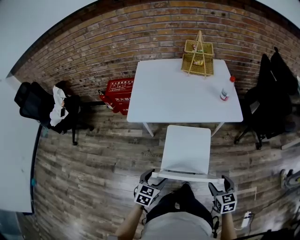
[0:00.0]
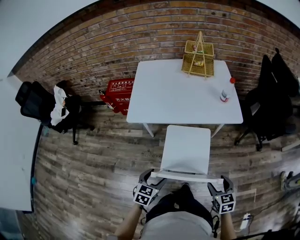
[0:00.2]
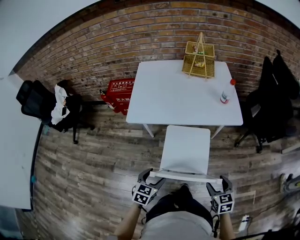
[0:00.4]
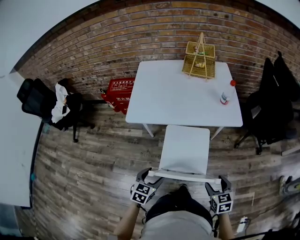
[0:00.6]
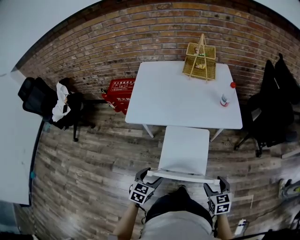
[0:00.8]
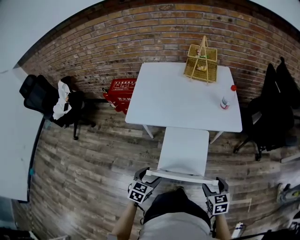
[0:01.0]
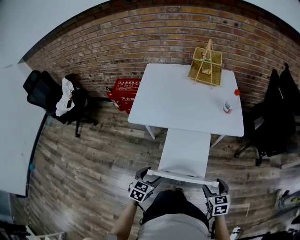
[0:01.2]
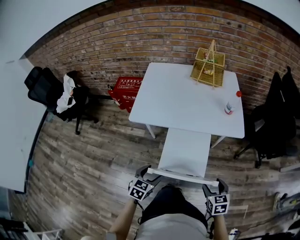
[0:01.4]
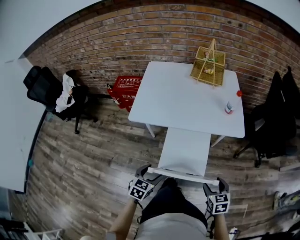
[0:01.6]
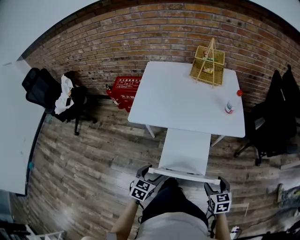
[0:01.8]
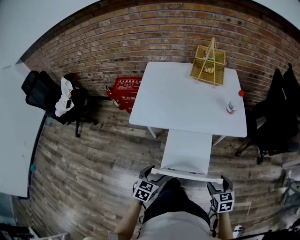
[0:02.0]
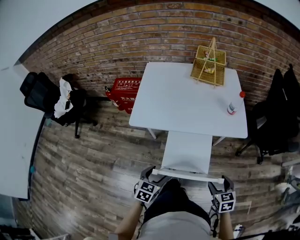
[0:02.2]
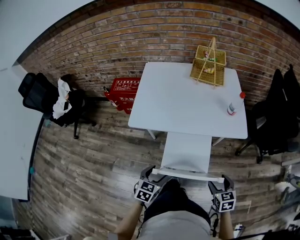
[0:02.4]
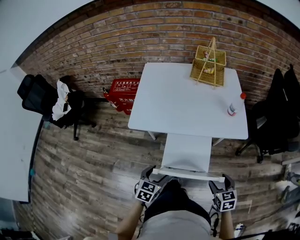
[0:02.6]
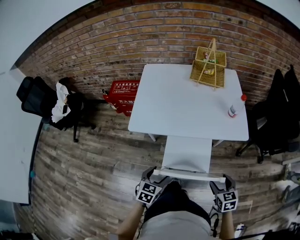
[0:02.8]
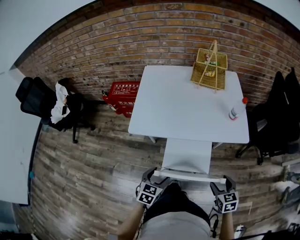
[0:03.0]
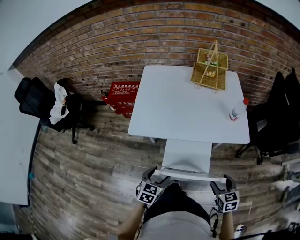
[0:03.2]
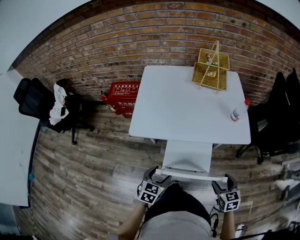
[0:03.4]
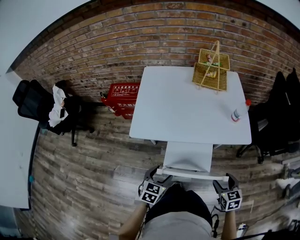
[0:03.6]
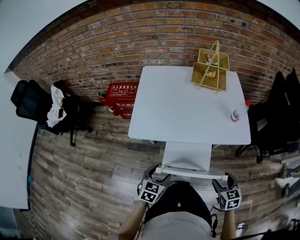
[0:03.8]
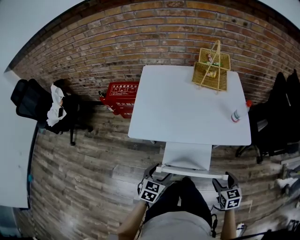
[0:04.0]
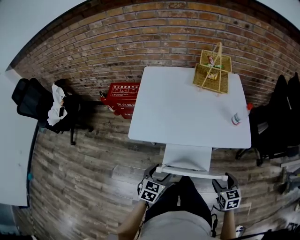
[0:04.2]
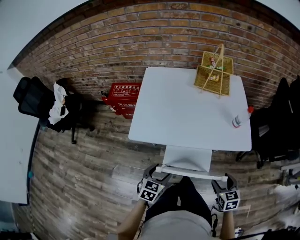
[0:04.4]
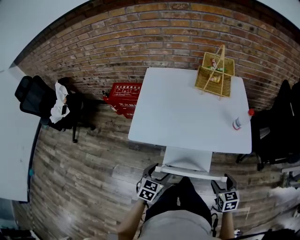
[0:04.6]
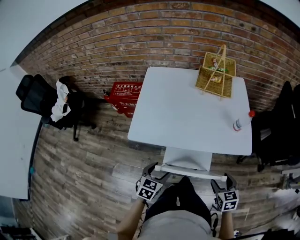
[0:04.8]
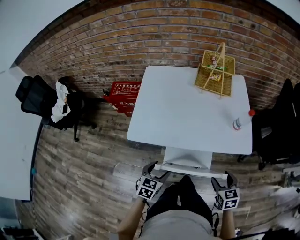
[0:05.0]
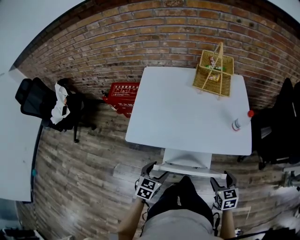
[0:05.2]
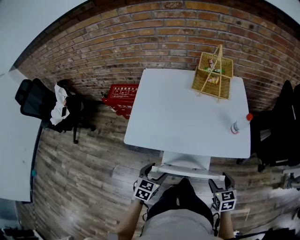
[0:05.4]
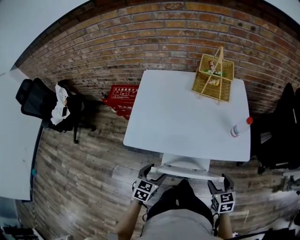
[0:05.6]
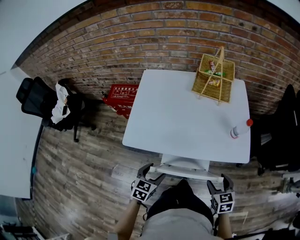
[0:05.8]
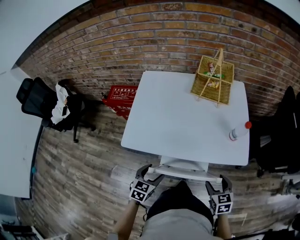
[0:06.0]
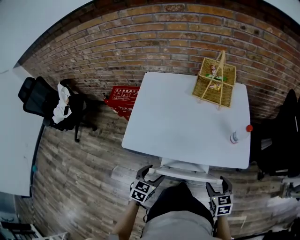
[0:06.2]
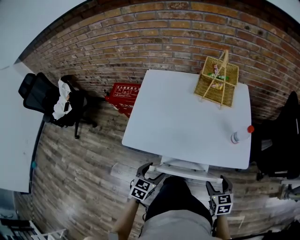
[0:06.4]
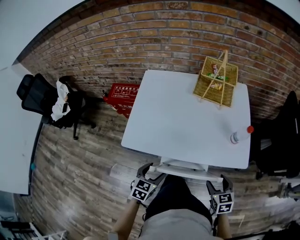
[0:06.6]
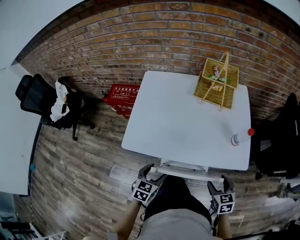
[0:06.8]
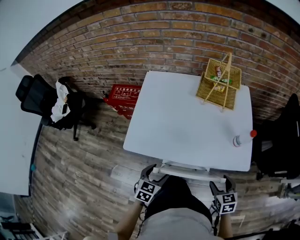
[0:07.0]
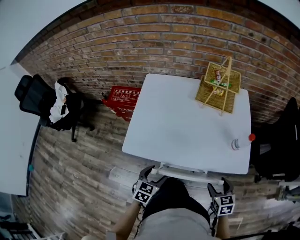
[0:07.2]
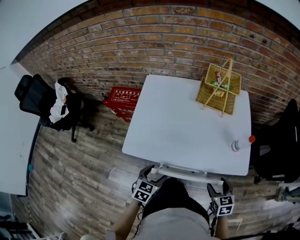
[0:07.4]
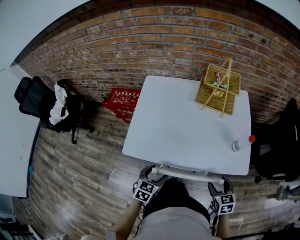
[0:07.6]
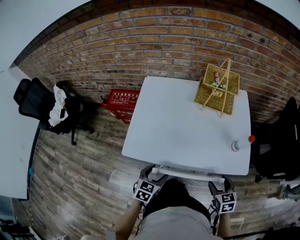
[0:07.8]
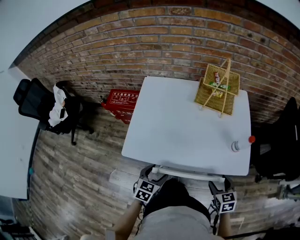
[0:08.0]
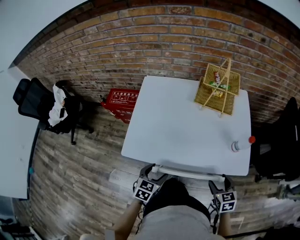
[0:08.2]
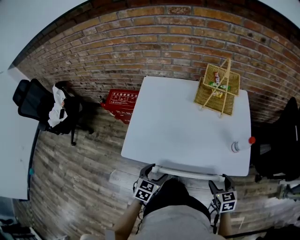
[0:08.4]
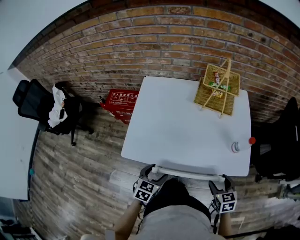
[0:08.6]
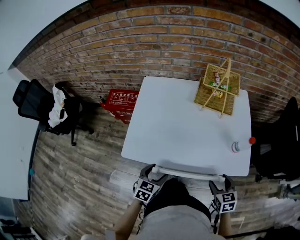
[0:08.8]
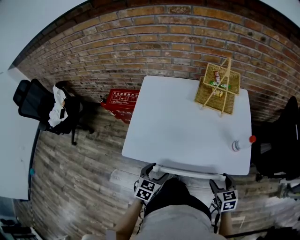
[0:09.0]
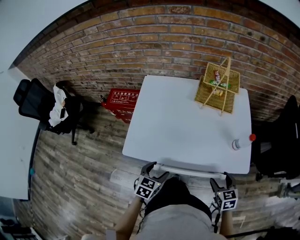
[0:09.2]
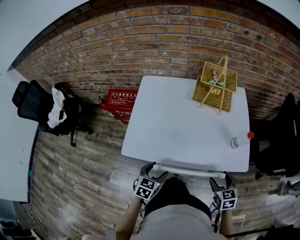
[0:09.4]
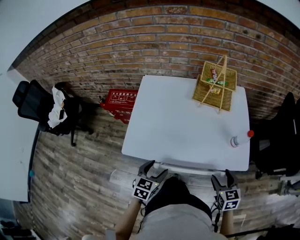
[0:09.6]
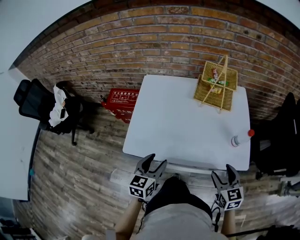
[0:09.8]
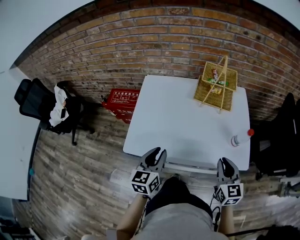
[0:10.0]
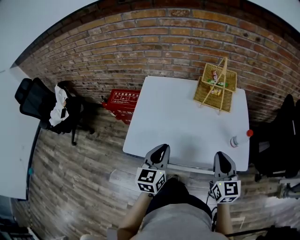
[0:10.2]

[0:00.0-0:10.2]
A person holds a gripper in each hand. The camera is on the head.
0:00.0 to 0:01.4: The right gripper shifts about 5 cm forward.
0:01.4 to 0:03.0: Both grippers move forward, some 5 cm.
0:03.0 to 0:04.4: The grippers both shift forward by some 5 cm.
0:04.4 to 0:05.8: The two grippers go roughly 5 cm forward.
0:05.8 to 0:07.2: The grippers make only small movements.
0:07.2 to 0:08.8: There are only small adjustments of the grippers.
0:08.8 to 0:10.2: The two grippers go roughly 15 cm upward and forward. The right gripper swivels roughly 30 degrees, and closes up; the left gripper turns by some 30 degrees, and closes.

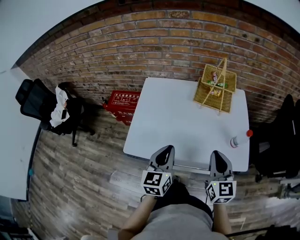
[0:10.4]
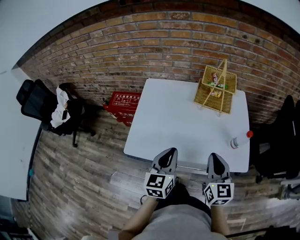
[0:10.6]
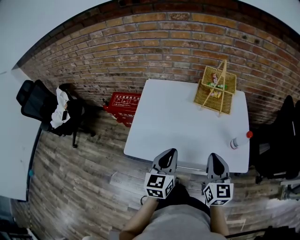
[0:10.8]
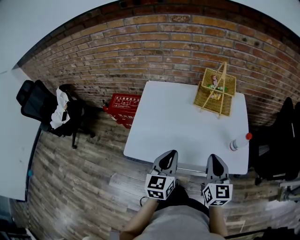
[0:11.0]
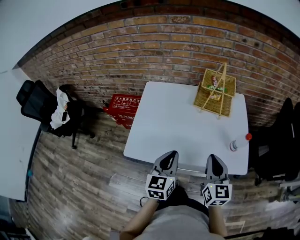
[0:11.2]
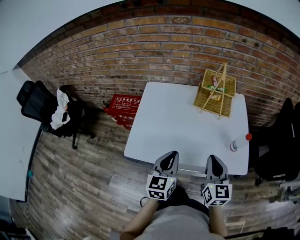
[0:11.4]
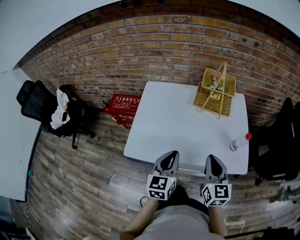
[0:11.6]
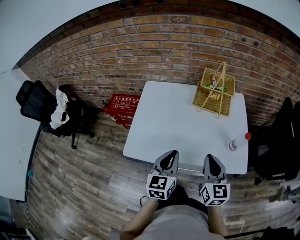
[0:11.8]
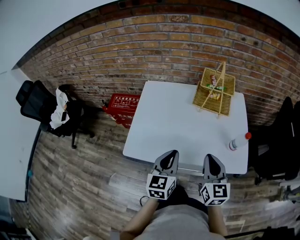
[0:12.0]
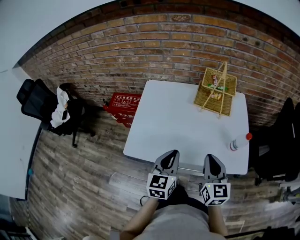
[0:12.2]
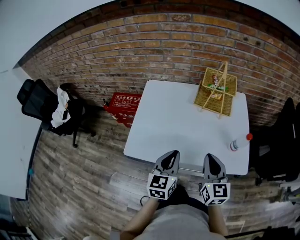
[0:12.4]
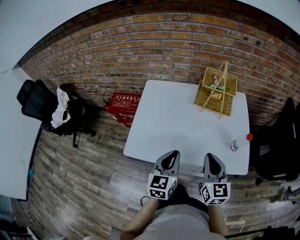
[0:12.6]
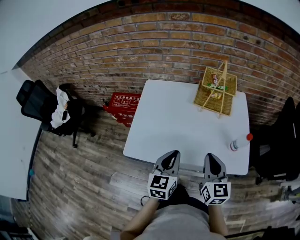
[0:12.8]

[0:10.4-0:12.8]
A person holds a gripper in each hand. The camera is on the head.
0:10.4 to 0:11.6: There are only small adjustments of the grippers.
0:11.6 to 0:12.8: Neither gripper changes place.

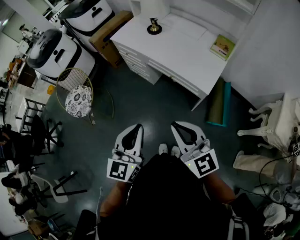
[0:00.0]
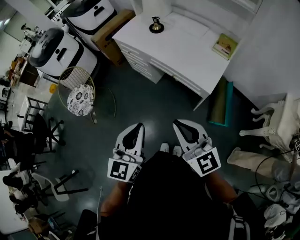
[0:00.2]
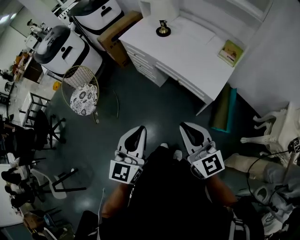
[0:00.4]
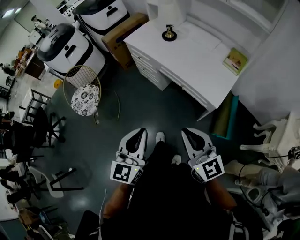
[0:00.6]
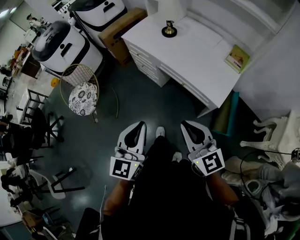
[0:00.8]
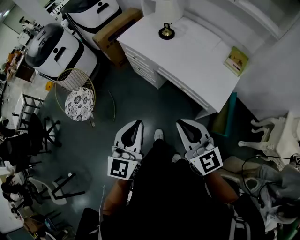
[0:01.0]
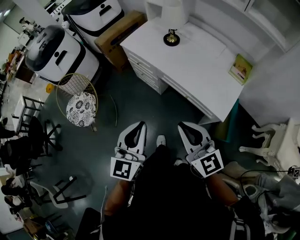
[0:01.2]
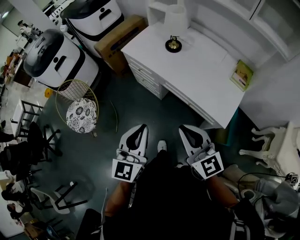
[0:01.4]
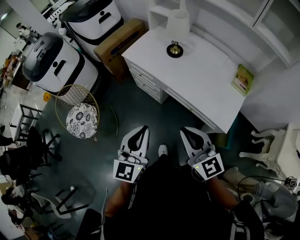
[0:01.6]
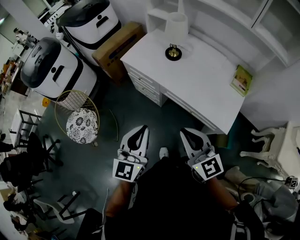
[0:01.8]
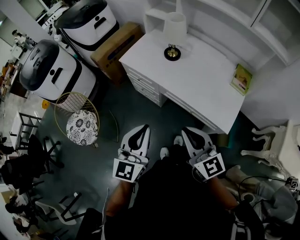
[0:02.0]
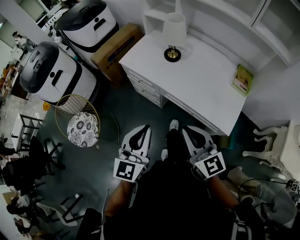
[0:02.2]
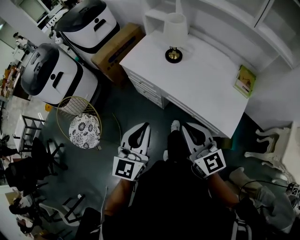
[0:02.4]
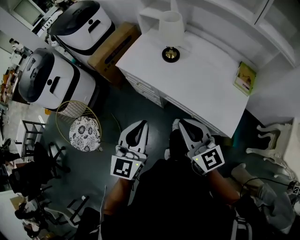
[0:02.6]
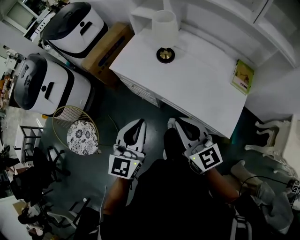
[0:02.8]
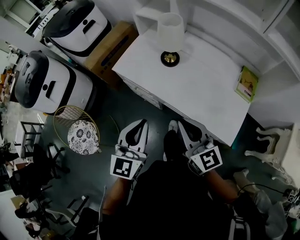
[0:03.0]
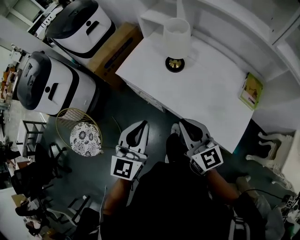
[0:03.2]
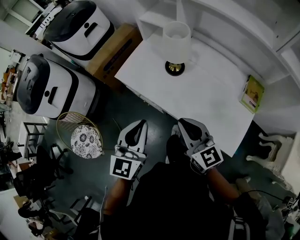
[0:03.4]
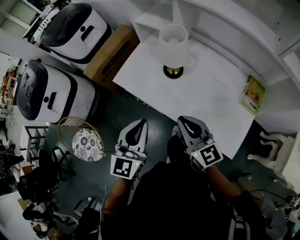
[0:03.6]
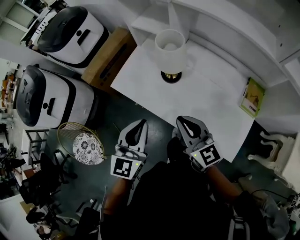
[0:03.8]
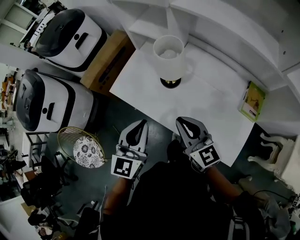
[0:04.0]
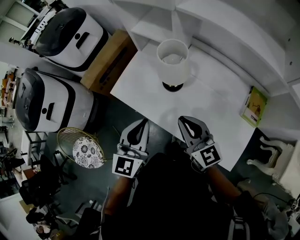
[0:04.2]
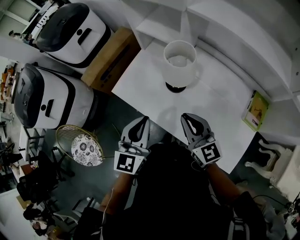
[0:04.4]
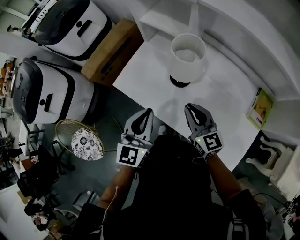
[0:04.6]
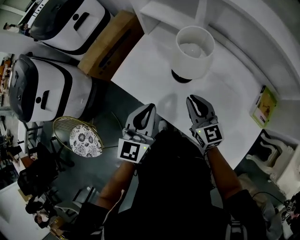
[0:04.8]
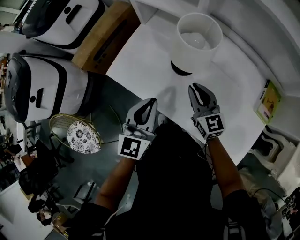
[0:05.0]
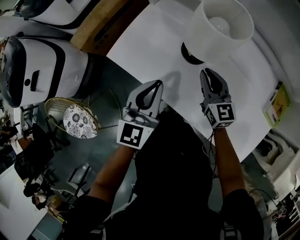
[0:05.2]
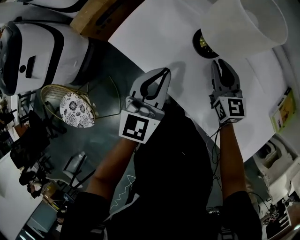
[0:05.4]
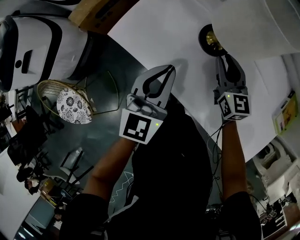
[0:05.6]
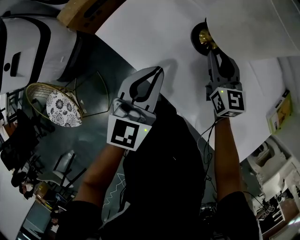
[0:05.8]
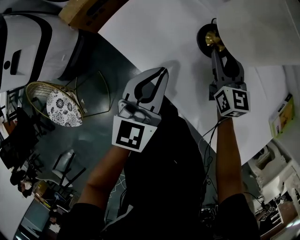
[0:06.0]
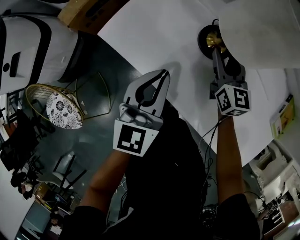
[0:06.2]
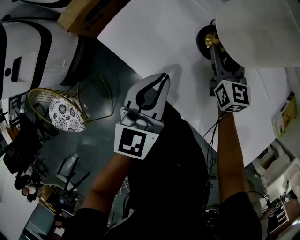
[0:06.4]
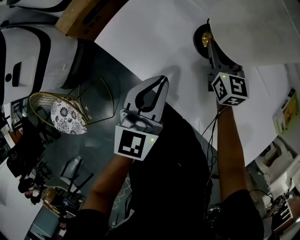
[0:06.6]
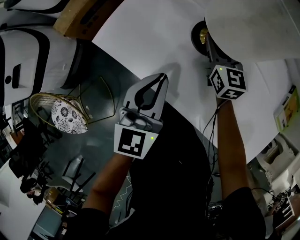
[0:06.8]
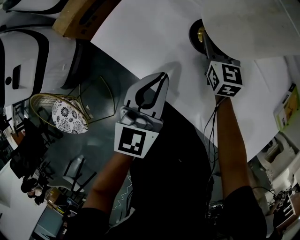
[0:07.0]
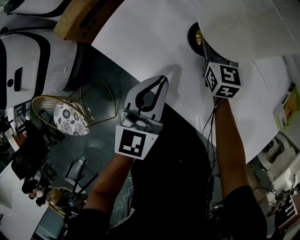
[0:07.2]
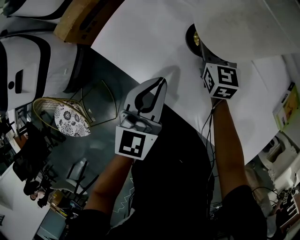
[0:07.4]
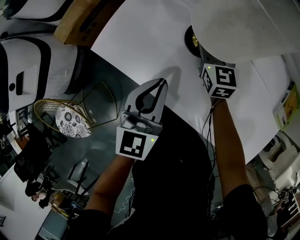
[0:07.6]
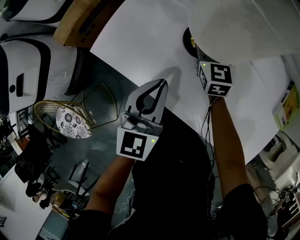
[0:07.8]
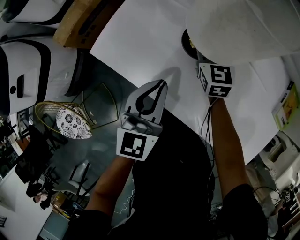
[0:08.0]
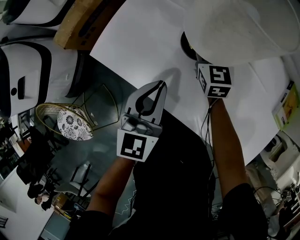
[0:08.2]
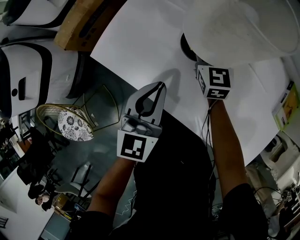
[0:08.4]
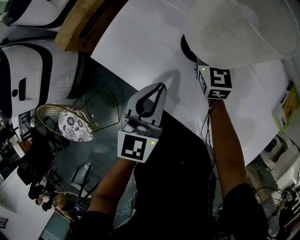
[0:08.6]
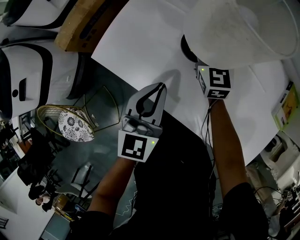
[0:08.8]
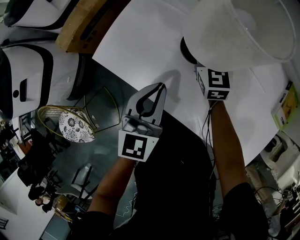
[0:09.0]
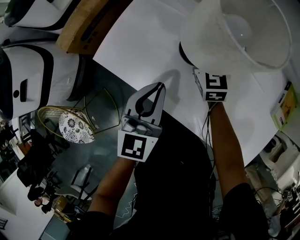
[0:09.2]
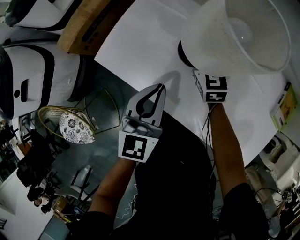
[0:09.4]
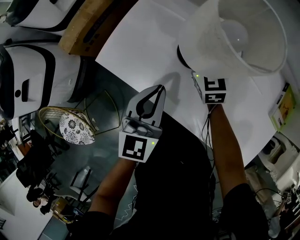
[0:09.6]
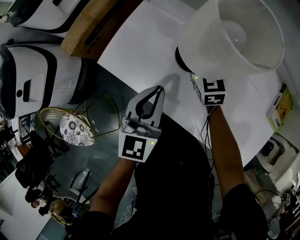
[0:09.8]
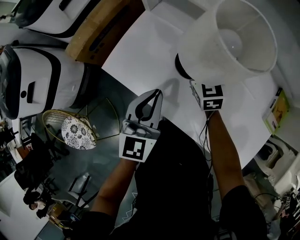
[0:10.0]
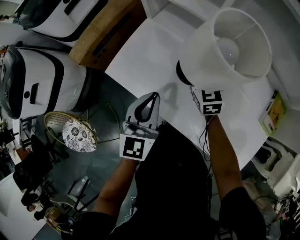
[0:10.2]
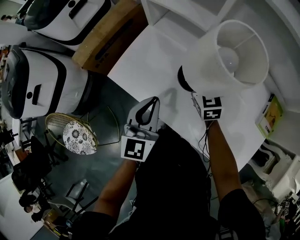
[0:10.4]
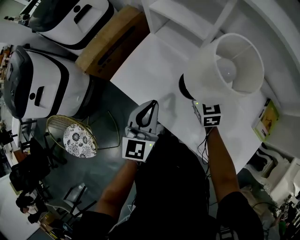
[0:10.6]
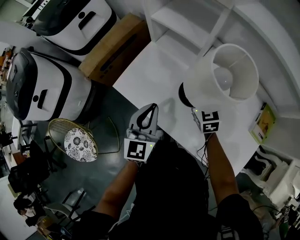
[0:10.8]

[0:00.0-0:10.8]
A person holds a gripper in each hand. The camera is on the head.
0:00.0 to 0:01.6: Both grippers travel together forward, roughly 25 cm.
0:01.6 to 0:03.0: The two grippers go approximately 15 cm forward.
0:03.0 to 0:04.6: The grippers both shift forward by some 25 cm.
0:04.6 to 0:06.2: The left gripper moves downward, roughly 15 cm; the right gripper heads downward and forward, covering about 25 cm, and opens.
0:06.2 to 0:07.8: The right gripper goes about 5 cm forward.
0:07.8 to 0:09.2: The grippers make only small movements.
0:09.2 to 0:10.8: The left gripper travels upward by roughly 10 cm. The right gripper shifts approximately 10 cm upward and backward.
